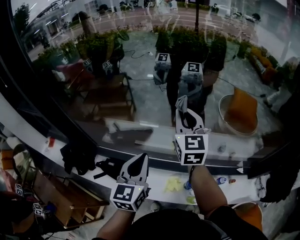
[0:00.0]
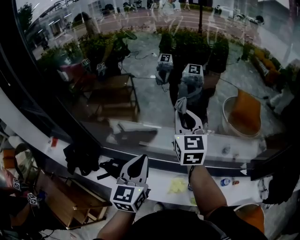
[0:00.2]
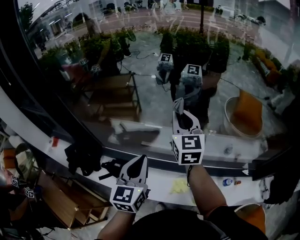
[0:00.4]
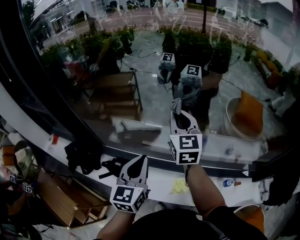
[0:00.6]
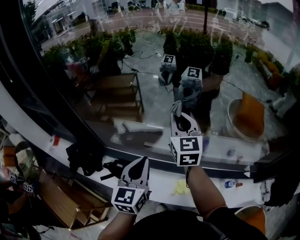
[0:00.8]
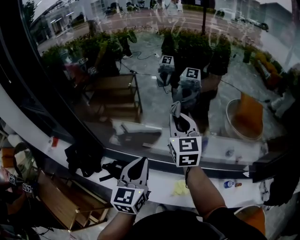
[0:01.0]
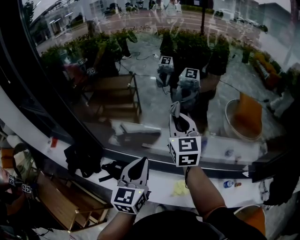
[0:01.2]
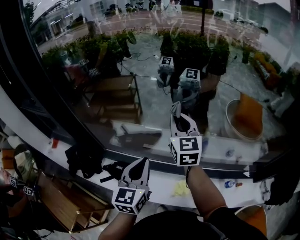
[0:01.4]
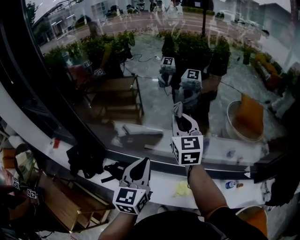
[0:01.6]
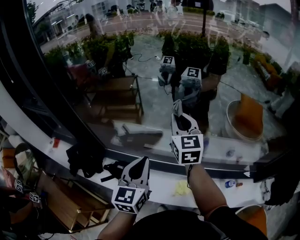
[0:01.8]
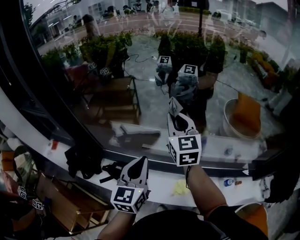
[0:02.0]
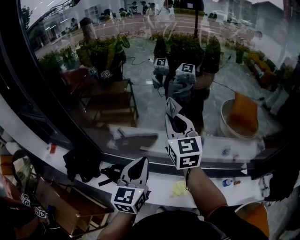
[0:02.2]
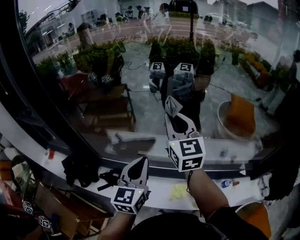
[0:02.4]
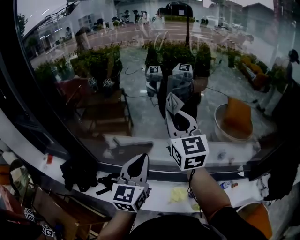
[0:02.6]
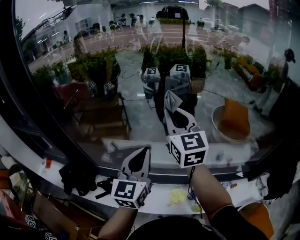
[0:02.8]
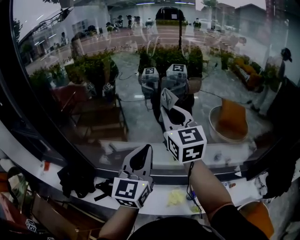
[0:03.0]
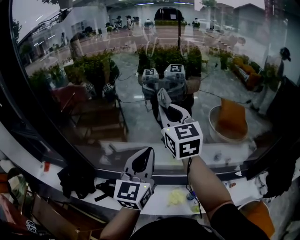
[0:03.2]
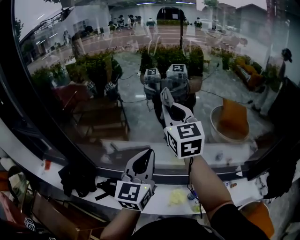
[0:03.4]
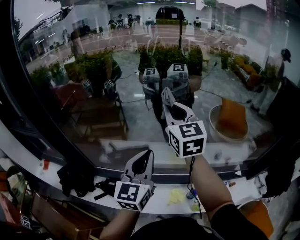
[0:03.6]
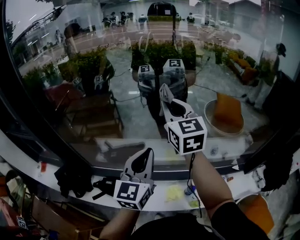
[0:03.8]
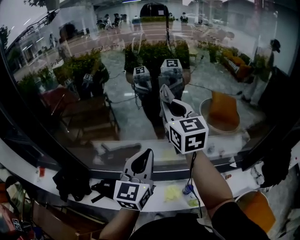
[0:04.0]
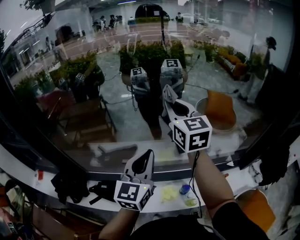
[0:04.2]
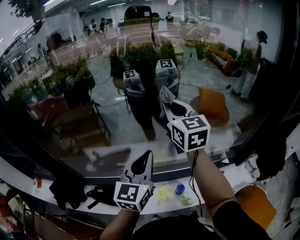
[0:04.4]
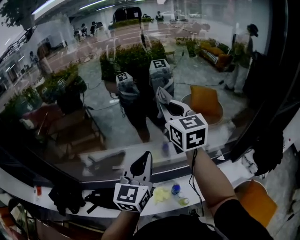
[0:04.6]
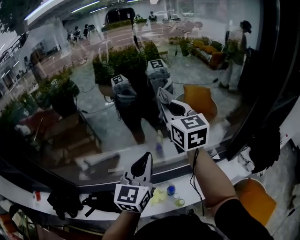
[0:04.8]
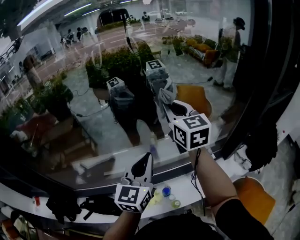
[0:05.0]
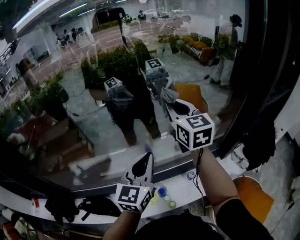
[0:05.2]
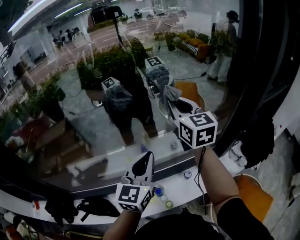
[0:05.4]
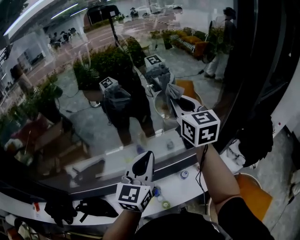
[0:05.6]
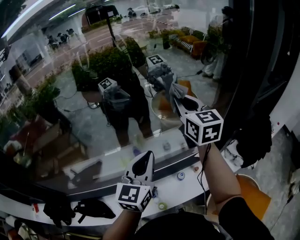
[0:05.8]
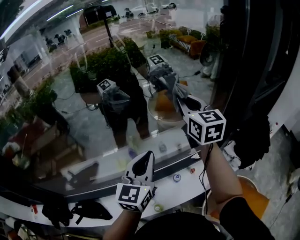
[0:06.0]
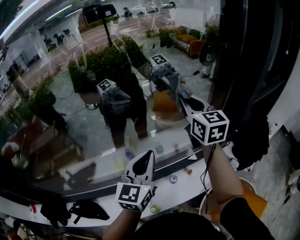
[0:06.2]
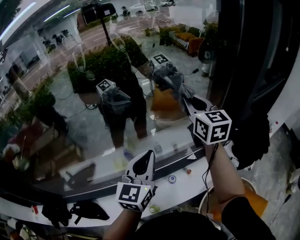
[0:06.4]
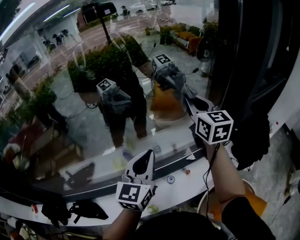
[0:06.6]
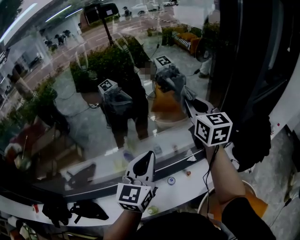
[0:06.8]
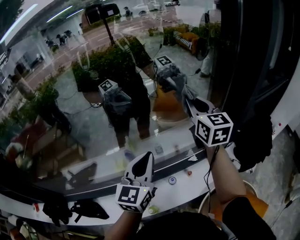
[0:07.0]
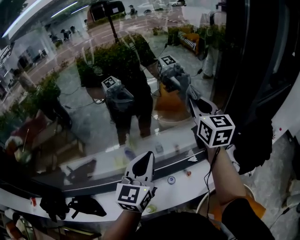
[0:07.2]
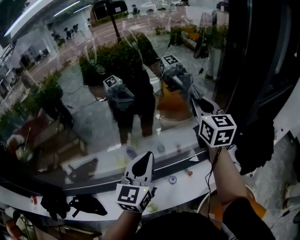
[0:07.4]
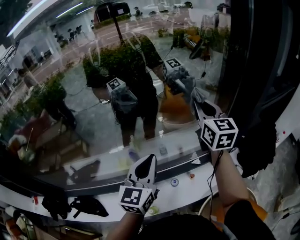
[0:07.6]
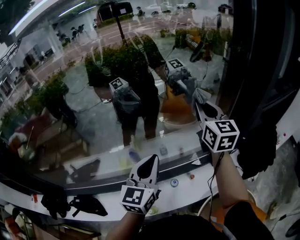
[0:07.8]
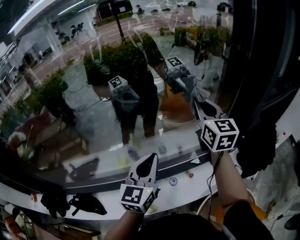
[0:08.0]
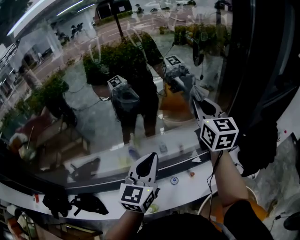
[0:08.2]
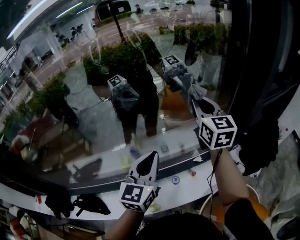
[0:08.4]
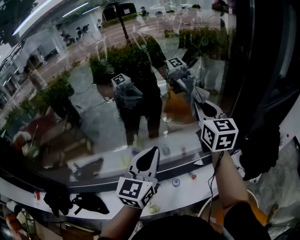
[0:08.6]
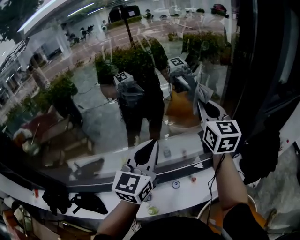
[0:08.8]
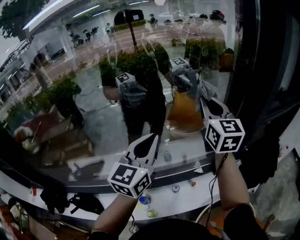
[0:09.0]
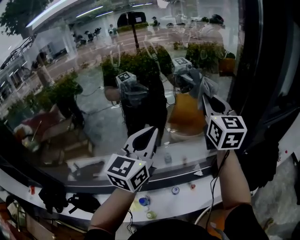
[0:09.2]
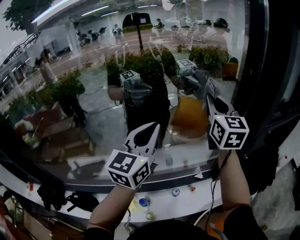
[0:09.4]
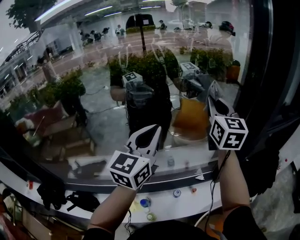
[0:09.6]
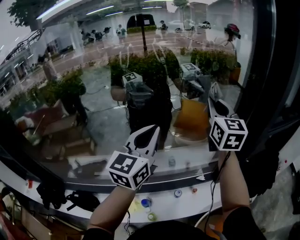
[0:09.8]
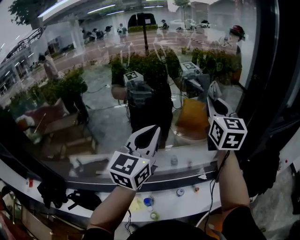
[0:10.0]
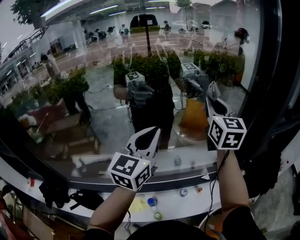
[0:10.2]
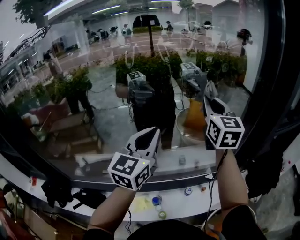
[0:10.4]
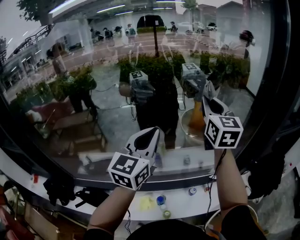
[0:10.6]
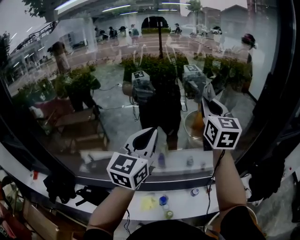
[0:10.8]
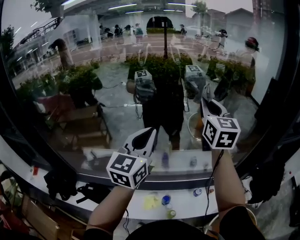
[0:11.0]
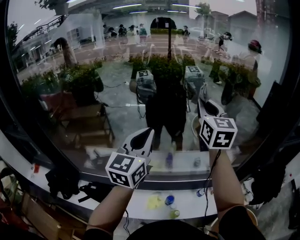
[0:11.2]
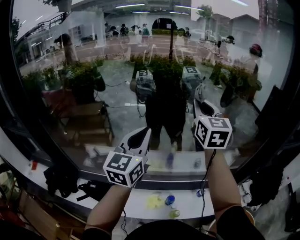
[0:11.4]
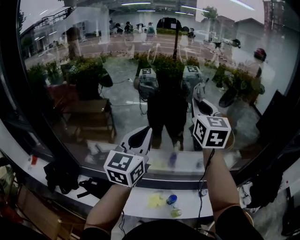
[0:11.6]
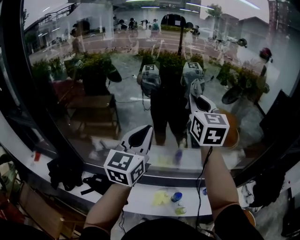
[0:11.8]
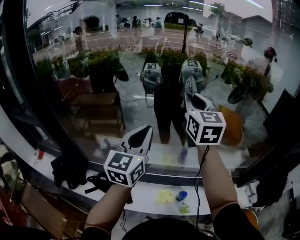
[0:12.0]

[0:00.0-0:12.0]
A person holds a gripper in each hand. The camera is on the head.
0:00.0 to 0:01.6: The grippers both shift to the left by roughly 10 cm.
0:01.6 to 0:03.0: The right gripper shifts roughly 10 cm upward; the left gripper is displaced upward and to the right by approximately 10 cm.
0:03.0 to 0:04.4: The two grippers go approximately 15 cm to the right.
0:04.4 to 0:06.0: Both grippers move to the right, some 35 cm.
0:06.0 to 0:07.6: The right gripper travels to the right by roughly 10 cm, while the left gripper travels to the right by some 5 cm.
0:07.6 to 0:09.0: The grippers both shift upward by roughly 10 cm.
0:09.0 to 0:10.4: Both grippers travel together to the left, about 10 cm.
0:10.4 to 0:12.0: Both grippers travel together to the left, about 40 cm.

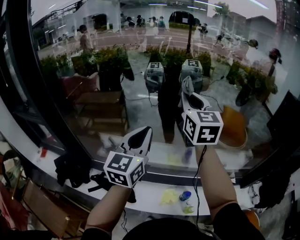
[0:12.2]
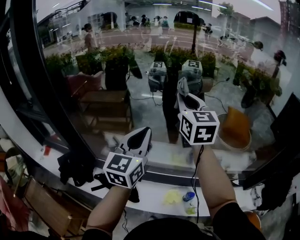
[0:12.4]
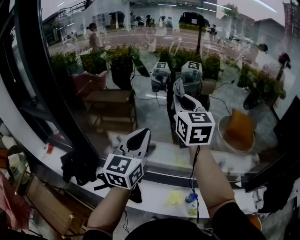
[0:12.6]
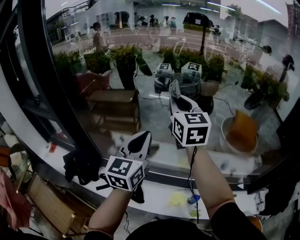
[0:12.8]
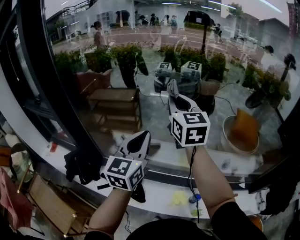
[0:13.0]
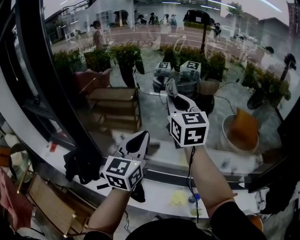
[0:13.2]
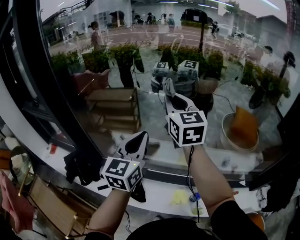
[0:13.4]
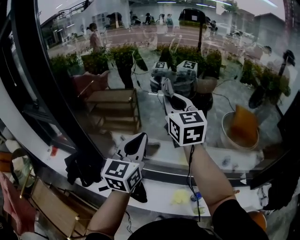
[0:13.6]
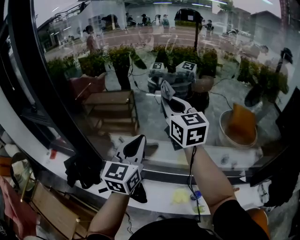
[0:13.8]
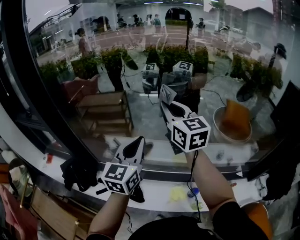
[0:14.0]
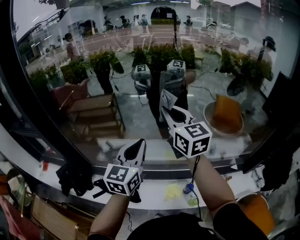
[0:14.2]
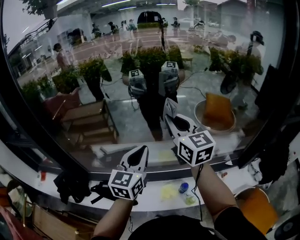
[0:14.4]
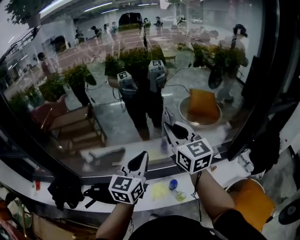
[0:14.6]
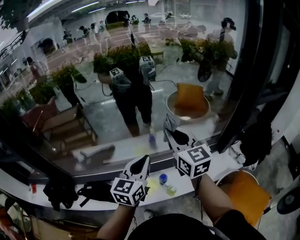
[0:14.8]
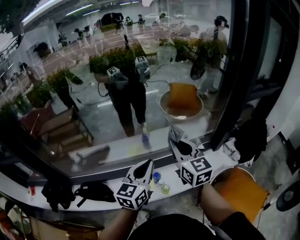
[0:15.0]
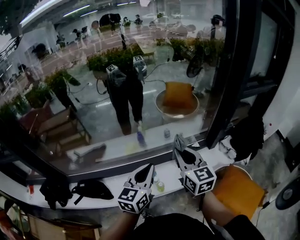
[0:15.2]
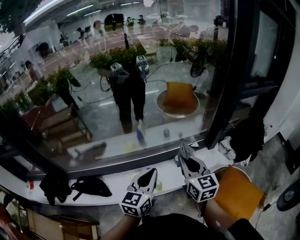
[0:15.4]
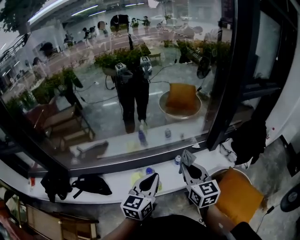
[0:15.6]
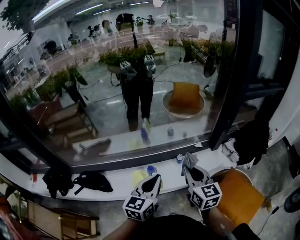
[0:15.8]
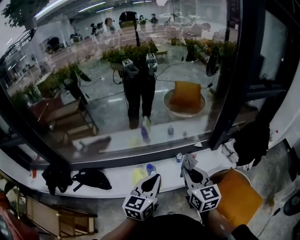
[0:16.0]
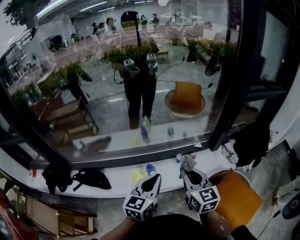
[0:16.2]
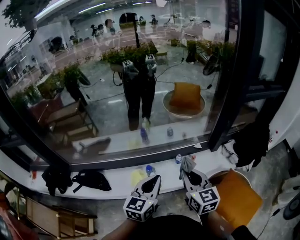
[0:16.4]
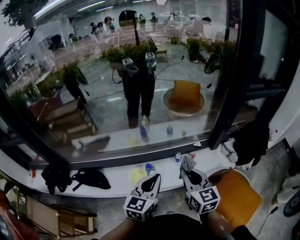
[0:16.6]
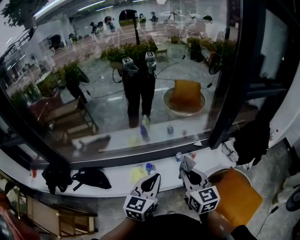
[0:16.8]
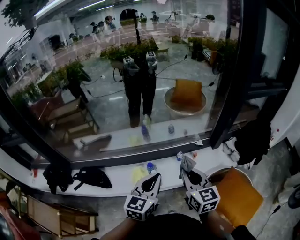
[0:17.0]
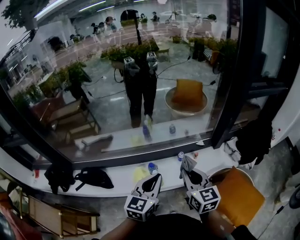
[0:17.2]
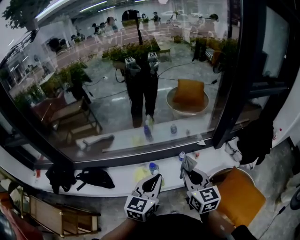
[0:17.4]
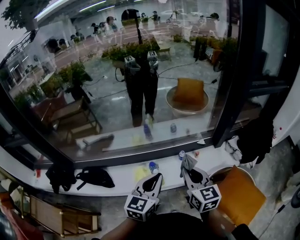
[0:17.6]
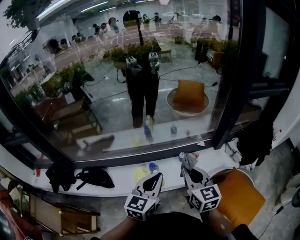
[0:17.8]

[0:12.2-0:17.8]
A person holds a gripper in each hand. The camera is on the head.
0:12.2 to 0:13.6: The right gripper moves to the left, about 15 cm; the left gripper goes approximately 10 cm to the left.
0:13.6 to 0:15.0: The pair of grippers is taken about 40 cm. The right gripper rotates some 20 degrees, while the left gripper rotates approximately 30 degrees.
0:15.0 to 0:16.4: The left gripper shifts some 15 cm to the right, backward and downward. The right gripper travels backward, to the right and downward by approximately 20 cm.
0:16.4 to 0:17.8: Both grippers stay put.

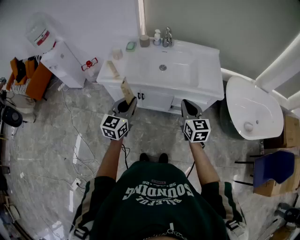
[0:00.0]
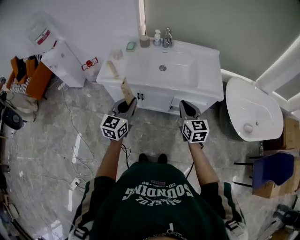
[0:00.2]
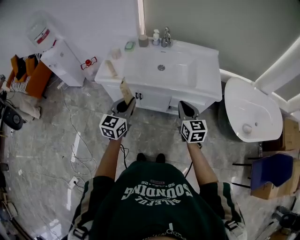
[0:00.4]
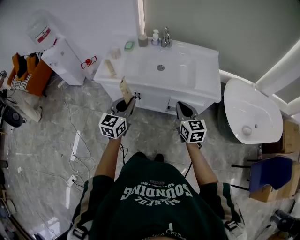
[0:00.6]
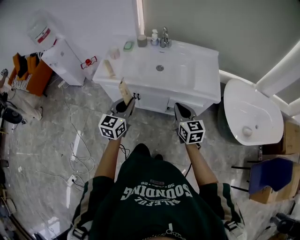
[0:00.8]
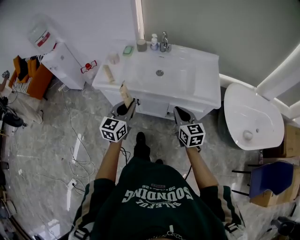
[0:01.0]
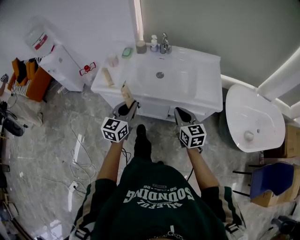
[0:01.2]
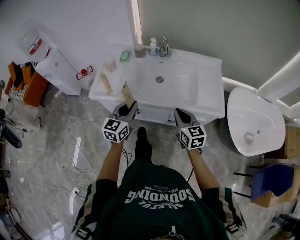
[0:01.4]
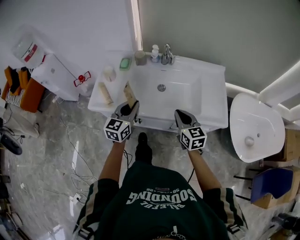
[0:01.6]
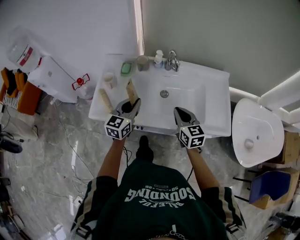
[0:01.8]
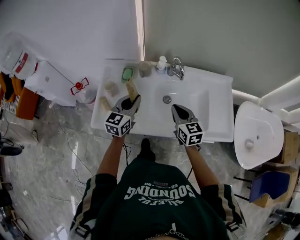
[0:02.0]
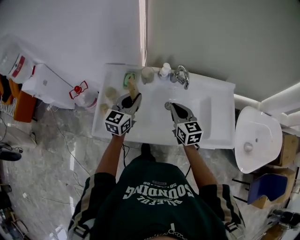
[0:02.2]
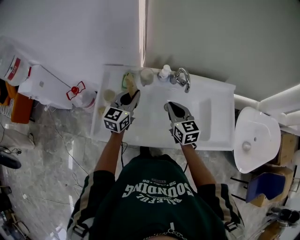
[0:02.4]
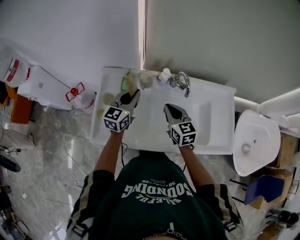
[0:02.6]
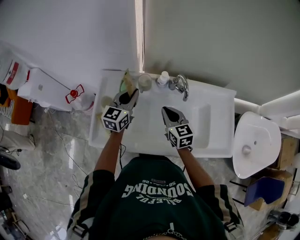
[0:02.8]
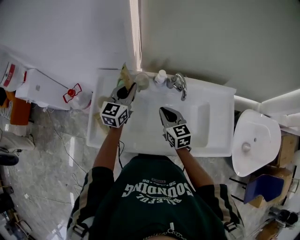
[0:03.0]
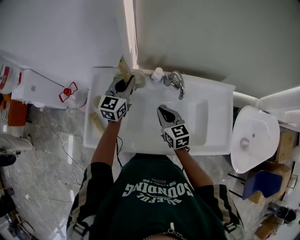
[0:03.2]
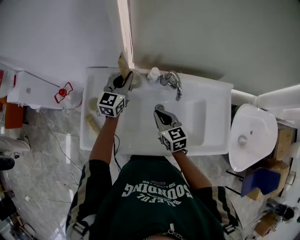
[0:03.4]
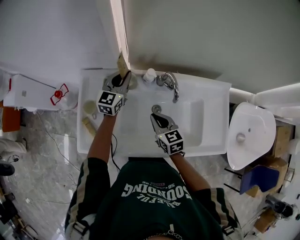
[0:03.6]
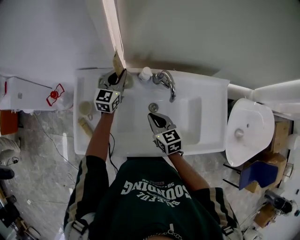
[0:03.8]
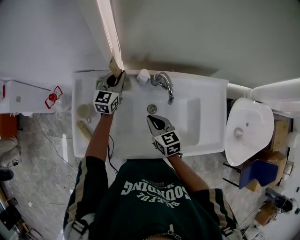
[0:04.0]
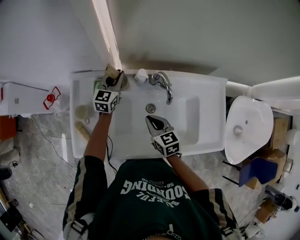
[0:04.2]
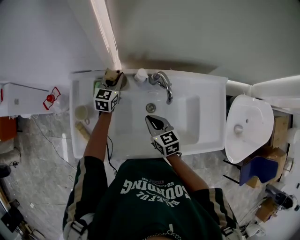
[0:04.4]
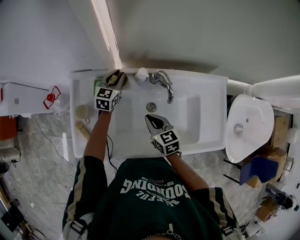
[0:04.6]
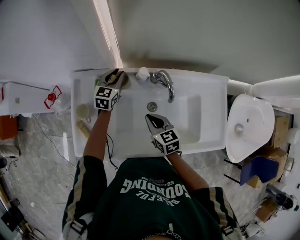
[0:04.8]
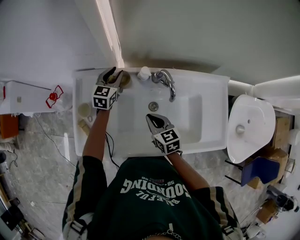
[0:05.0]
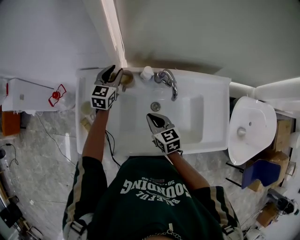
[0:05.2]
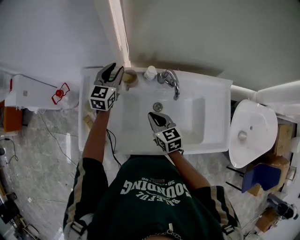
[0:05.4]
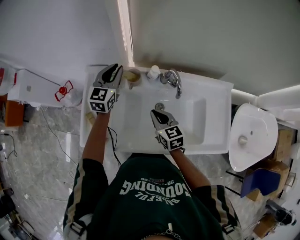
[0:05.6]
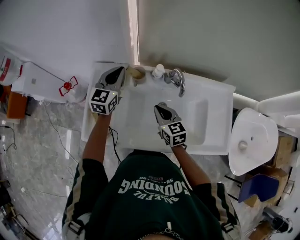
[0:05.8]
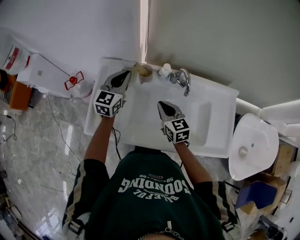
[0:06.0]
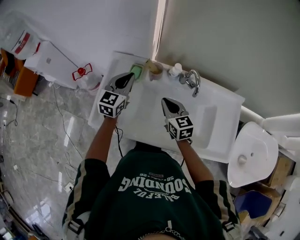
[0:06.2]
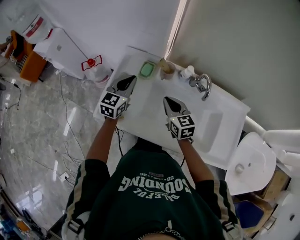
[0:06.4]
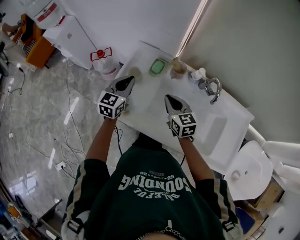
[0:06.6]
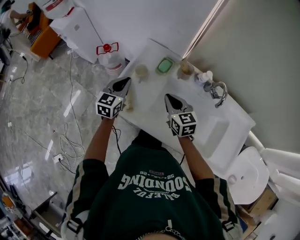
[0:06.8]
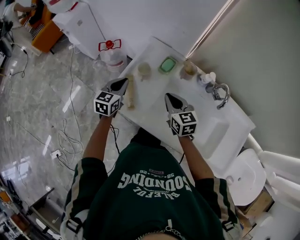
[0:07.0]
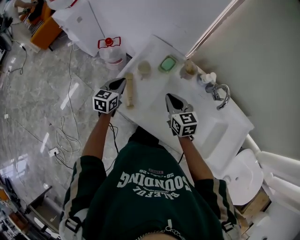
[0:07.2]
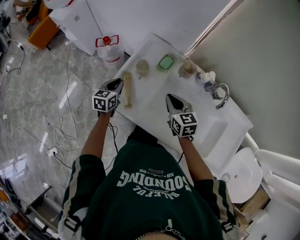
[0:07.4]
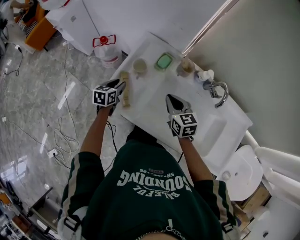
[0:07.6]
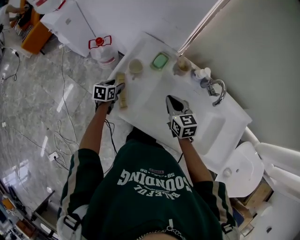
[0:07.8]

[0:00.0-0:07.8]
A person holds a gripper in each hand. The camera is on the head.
0:00.0 to 0:01.6: Both grippers travel together forward, approximately 20 cm.
0:01.6 to 0:03.2: The left gripper goes roughly 35 cm forward, while the right gripper goes some 30 cm forward and to the left.
0:03.2 to 0:04.6: The left gripper shifts about 15 cm downward and forward, while the right gripper is displaced downward by roughly 5 cm.
0:04.6 to 0:06.2: The right gripper moves upward and to the left, about 10 cm; the left gripper shifts roughly 25 cm backward, upward and to the left.
0:06.2 to 0:07.8: The right gripper goes approximately 10 cm to the left; the left gripper travels downward and to the left by some 30 cm, tips its fingers downward by approximately 30 degrees, and opens up.
